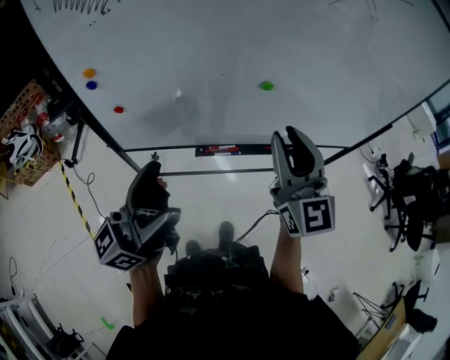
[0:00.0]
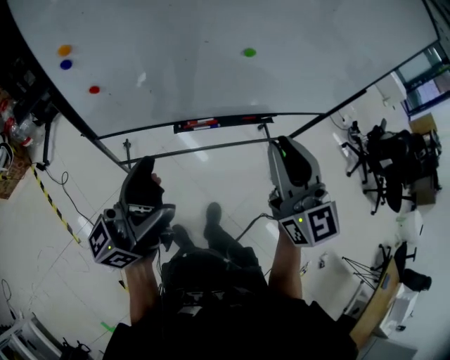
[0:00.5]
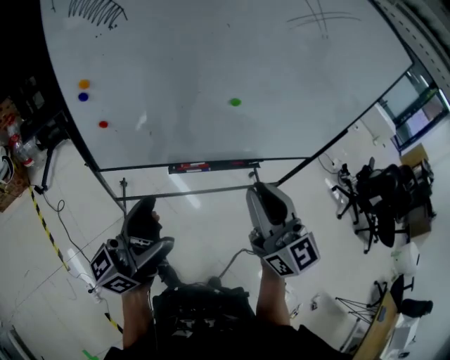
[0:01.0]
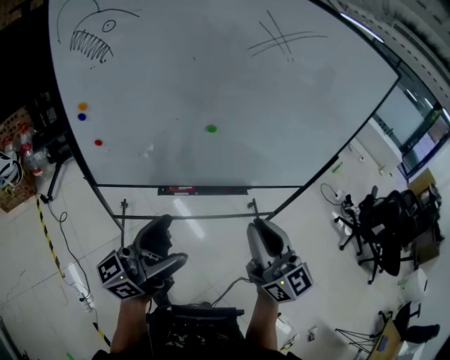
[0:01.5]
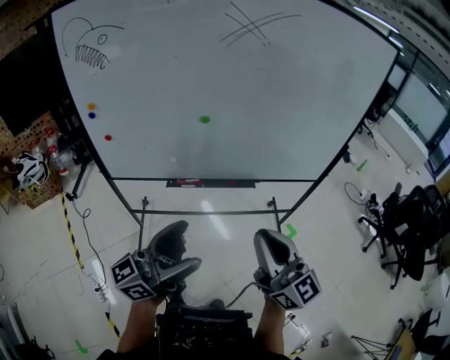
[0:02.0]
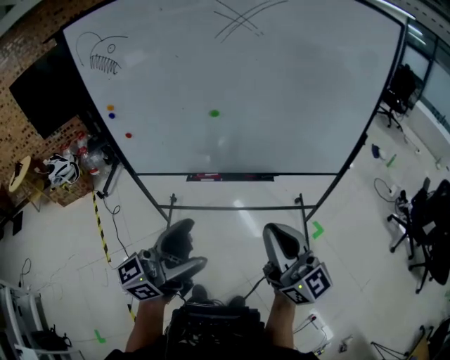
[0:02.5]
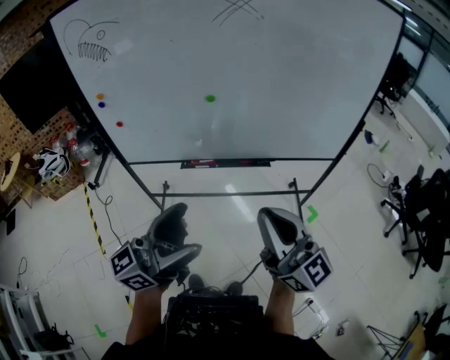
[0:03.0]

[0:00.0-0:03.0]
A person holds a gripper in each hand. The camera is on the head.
0:00.0 to 0:01.5: The left gripper is displaced to the right and backward by approximately 15 cm. The right gripper is displaced backward and to the right by approximately 20 cm.
0:01.5 to 0:03.0: Both grippers move to the right and backward, approximately 15 cm.

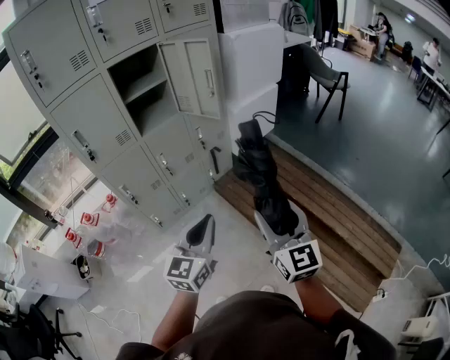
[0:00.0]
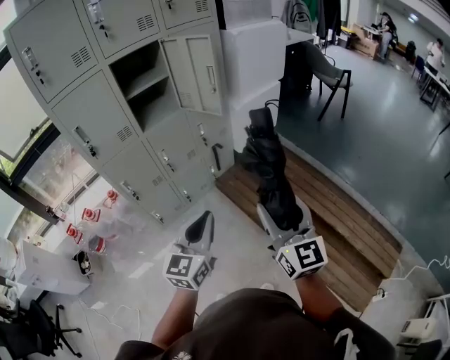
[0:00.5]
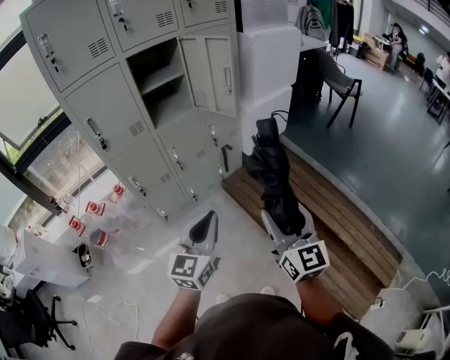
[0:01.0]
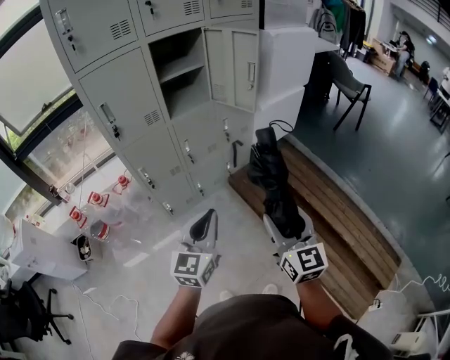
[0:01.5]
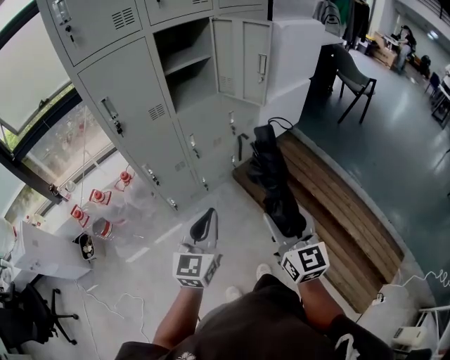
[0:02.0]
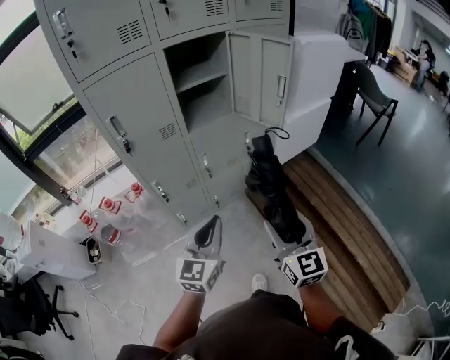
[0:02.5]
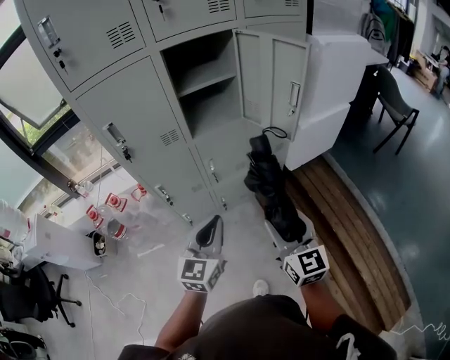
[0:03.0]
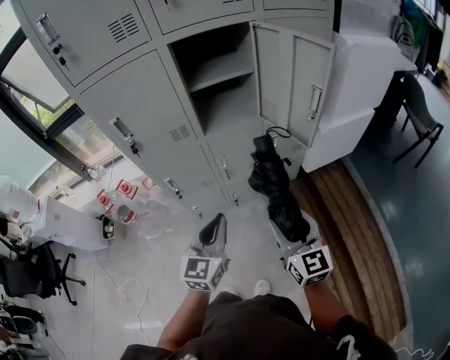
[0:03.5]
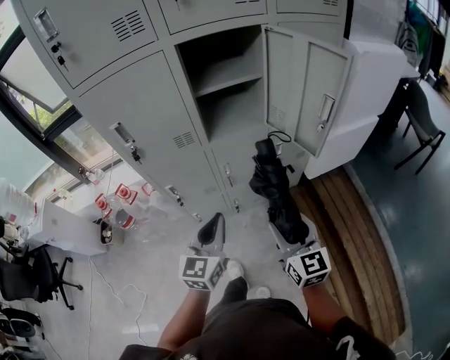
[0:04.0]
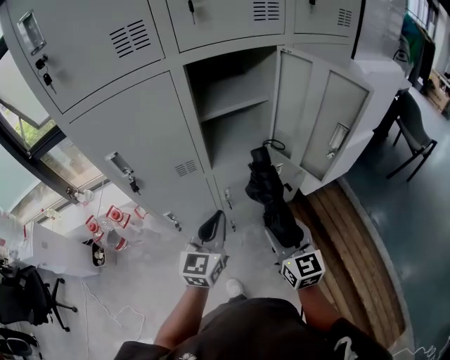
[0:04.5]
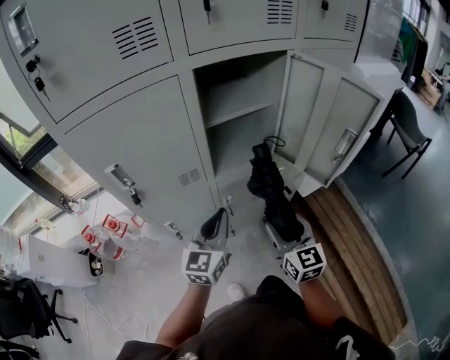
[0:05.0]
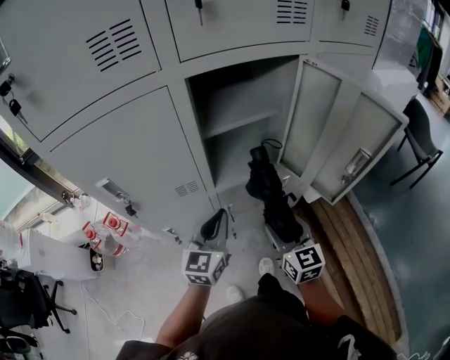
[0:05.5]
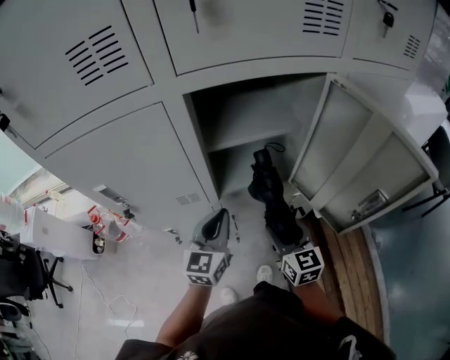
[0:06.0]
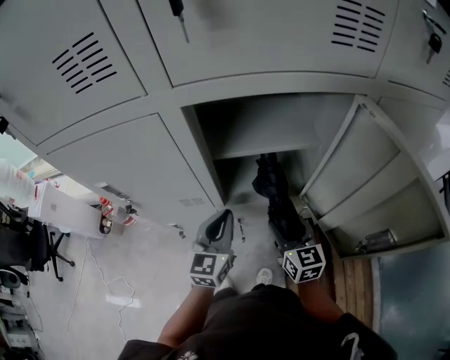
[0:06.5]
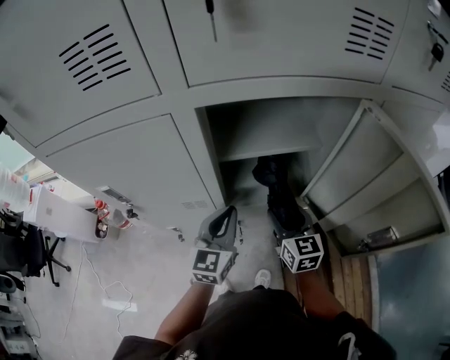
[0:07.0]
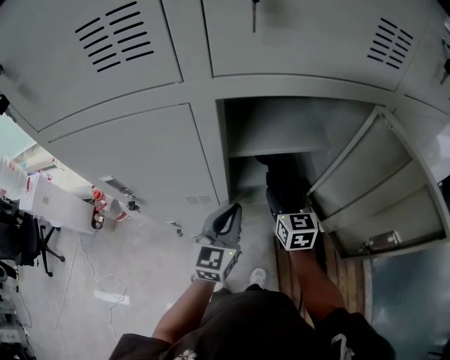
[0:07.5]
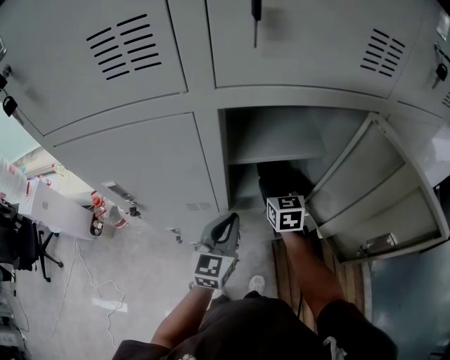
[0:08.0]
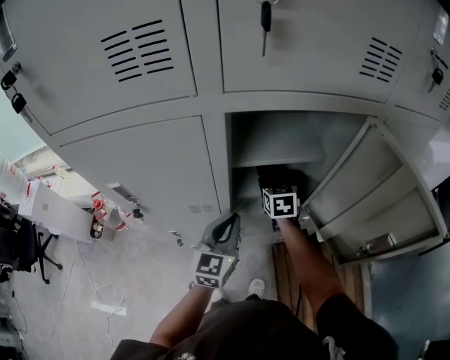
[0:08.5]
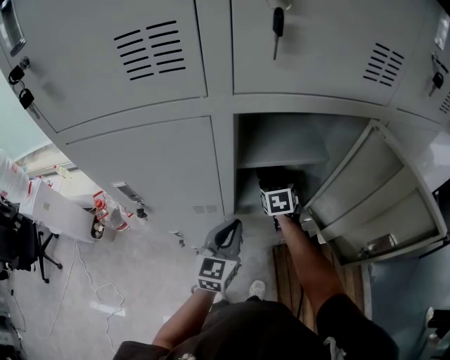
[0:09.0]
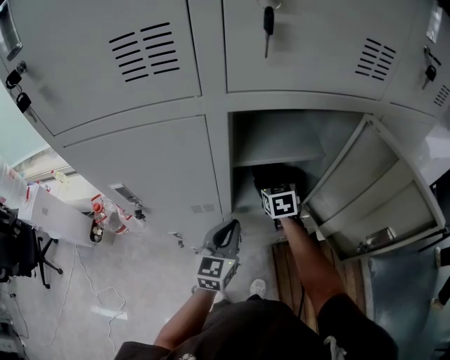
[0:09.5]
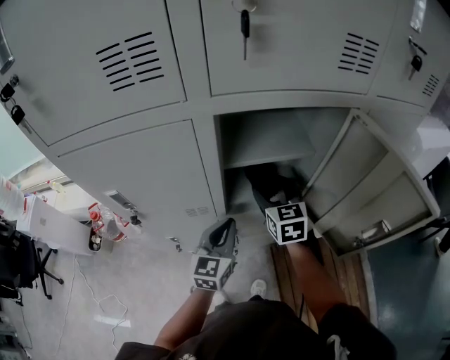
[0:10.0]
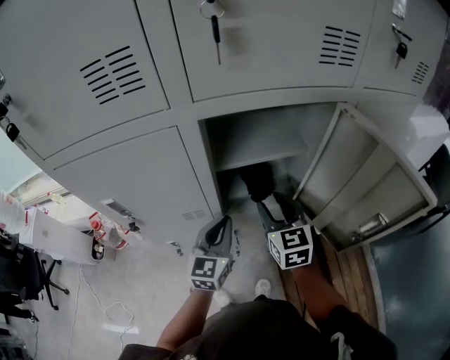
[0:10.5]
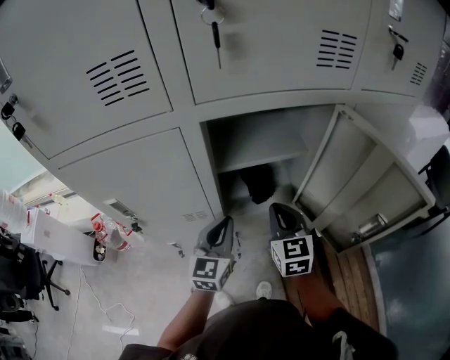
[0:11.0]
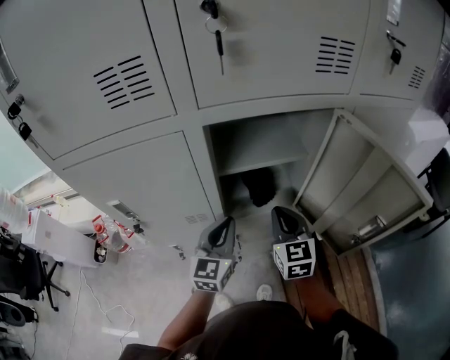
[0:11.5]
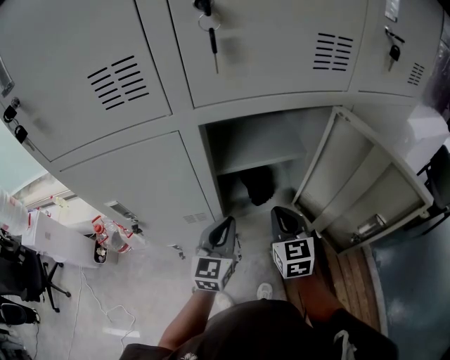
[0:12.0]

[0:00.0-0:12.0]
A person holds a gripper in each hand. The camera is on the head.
0:00.0 to 0:02.0: Both grippers move to the left, roughly 15 cm.
0:02.0 to 0:04.0: The two grippers go about 25 cm forward.
0:04.0 to 0:06.0: Both grippers move forward, some 25 cm.
0:06.0 to 0:08.0: The right gripper goes some 20 cm forward.
0:08.0 to 0:10.0: The right gripper moves upward, about 5 cm.
0:10.0 to 0:12.0: The right gripper goes some 10 cm backward, and closes.

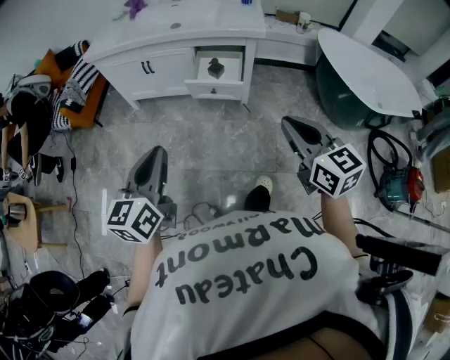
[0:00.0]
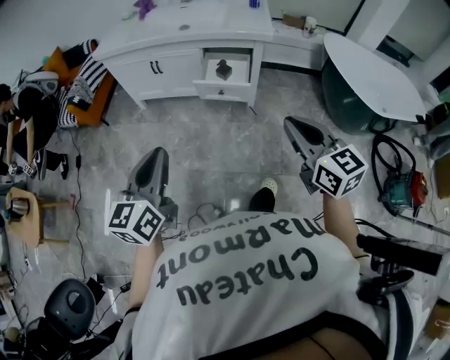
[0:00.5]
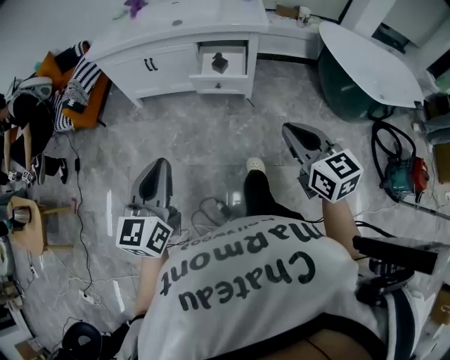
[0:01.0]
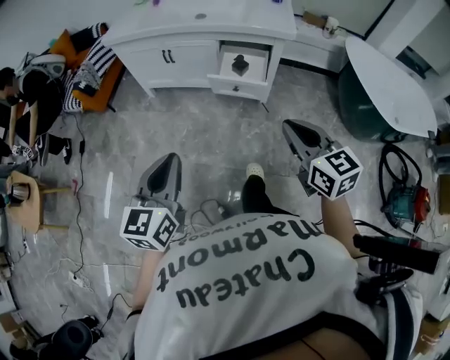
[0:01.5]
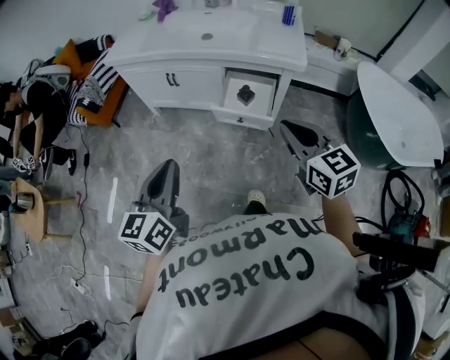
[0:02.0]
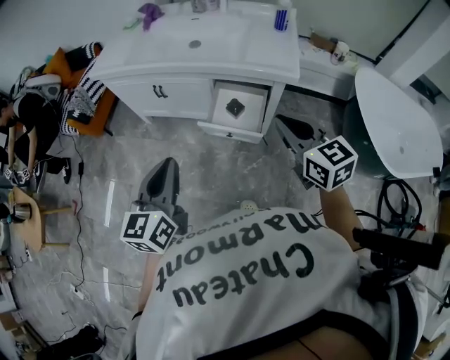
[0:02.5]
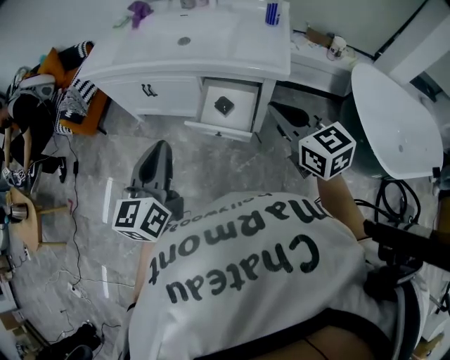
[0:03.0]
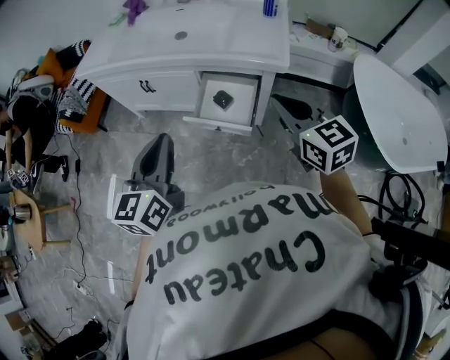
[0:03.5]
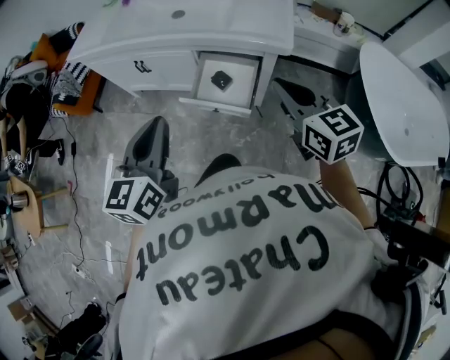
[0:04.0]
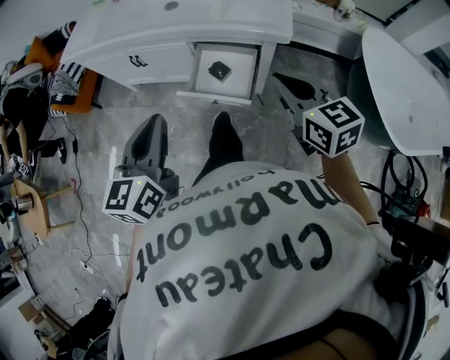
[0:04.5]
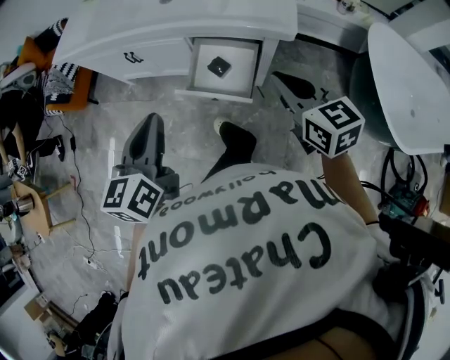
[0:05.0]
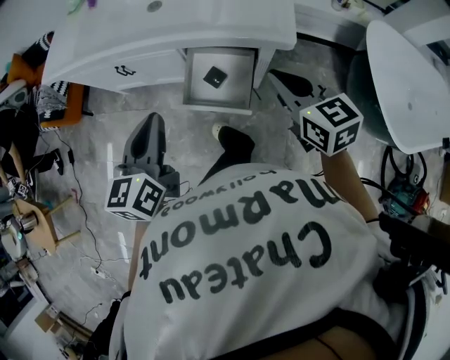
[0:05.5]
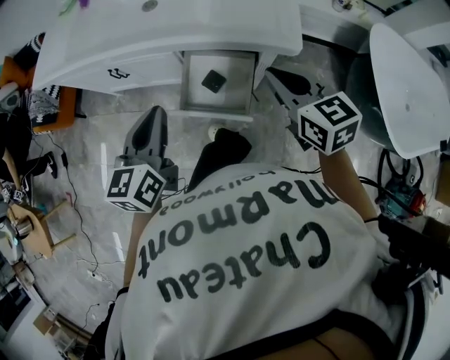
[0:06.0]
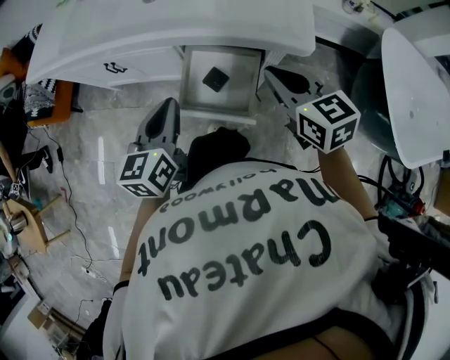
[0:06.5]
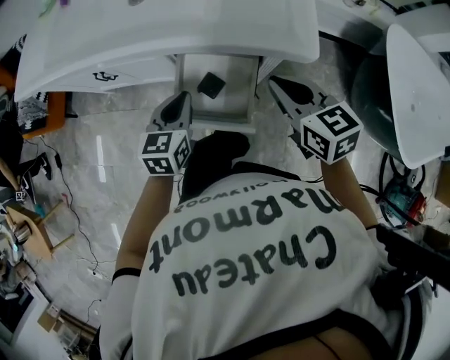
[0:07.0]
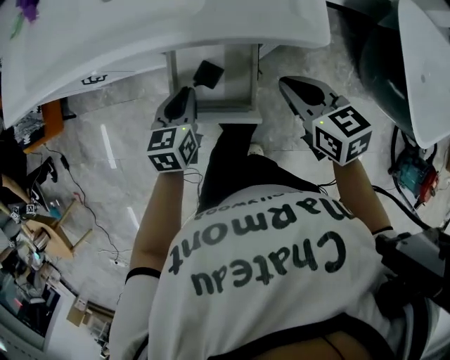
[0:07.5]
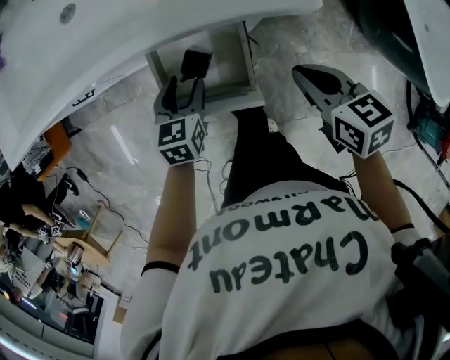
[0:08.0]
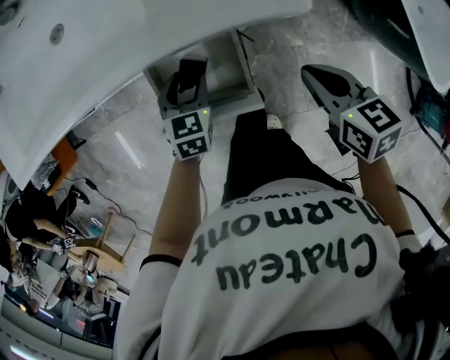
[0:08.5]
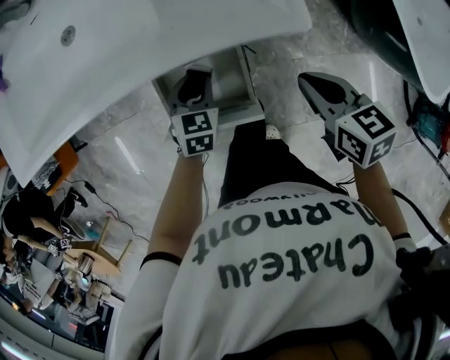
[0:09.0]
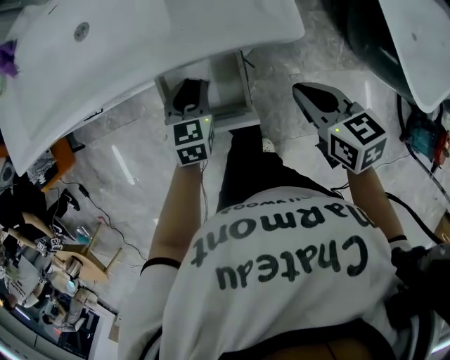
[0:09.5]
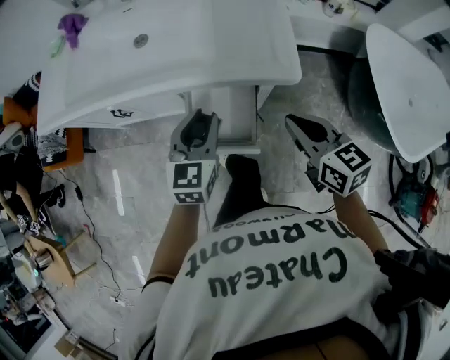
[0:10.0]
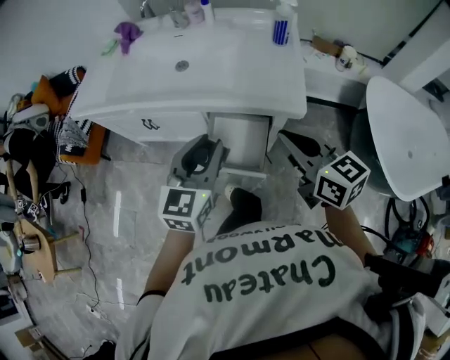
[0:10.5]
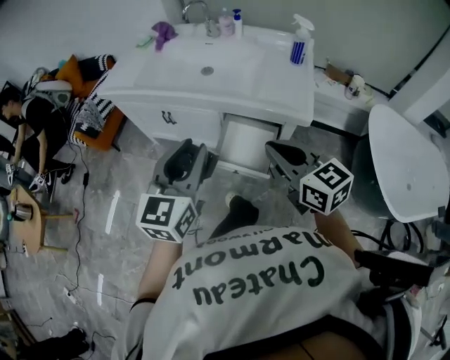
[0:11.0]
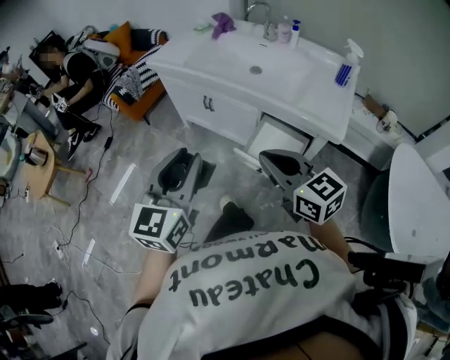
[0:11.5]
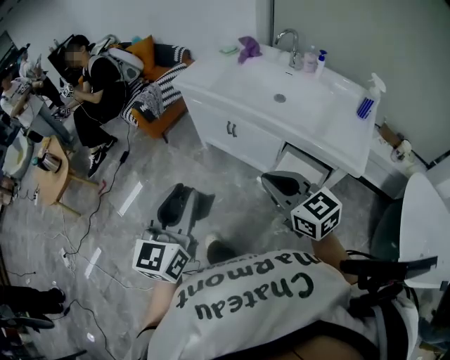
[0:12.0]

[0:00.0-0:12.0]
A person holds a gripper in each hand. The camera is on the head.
0:00.0 to 0:02.0: The left gripper travels forward by some 15 cm. Meanwhile the right gripper shifts approximately 20 cm forward.
0:02.0 to 0:04.0: The right gripper heads forward and to the right, covering roughly 20 cm, while the left gripper moves to the right and forward, about 20 cm.
0:04.0 to 0:06.0: The two grippers go some 15 cm forward and downward.
0:06.0 to 0:08.0: The left gripper is displaced downward by roughly 25 cm, rotates roughly 30 degrees, and opens up. The right gripper shifts roughly 15 cm downward, and changes its angle by some 30 degrees.
0:08.0 to 0:10.0: The grippers both shift upward by some 15 cm. The left gripper changes its angle by about 20 degrees, and closes.
0:10.0 to 0:12.0: The right gripper shifts by about 35 cm, and rotates roughly 50 degrees, while the left gripper changes place by approximately 50 cm, and rotates about 40 degrees.
